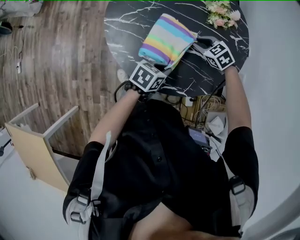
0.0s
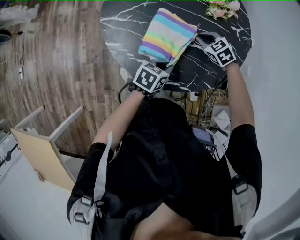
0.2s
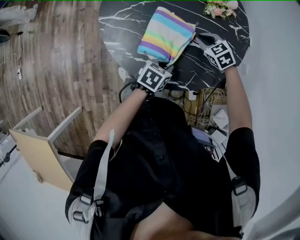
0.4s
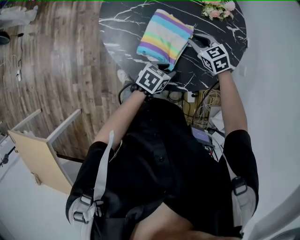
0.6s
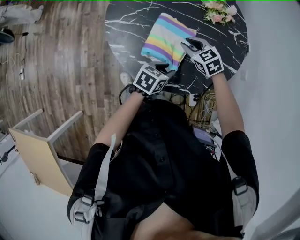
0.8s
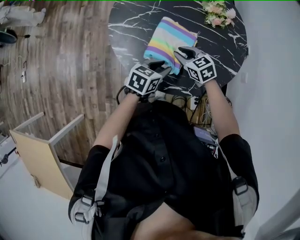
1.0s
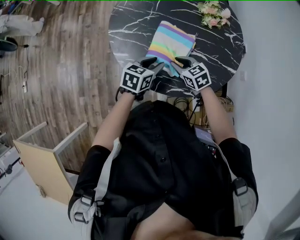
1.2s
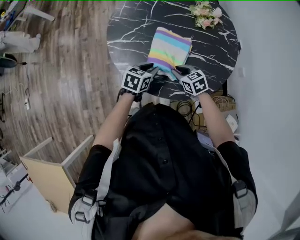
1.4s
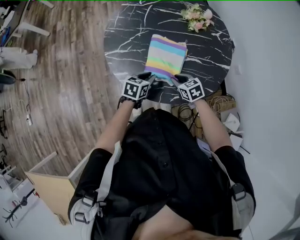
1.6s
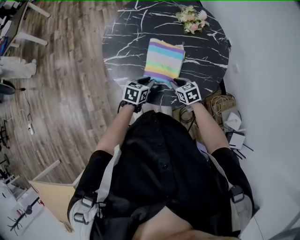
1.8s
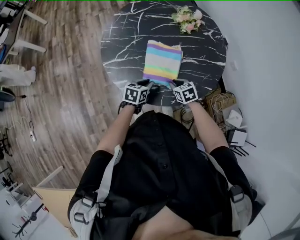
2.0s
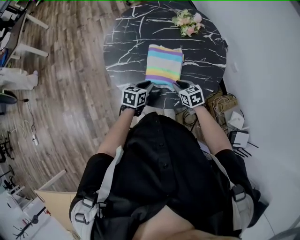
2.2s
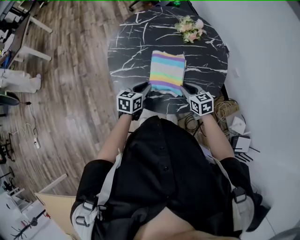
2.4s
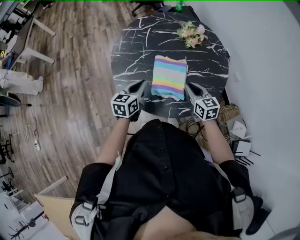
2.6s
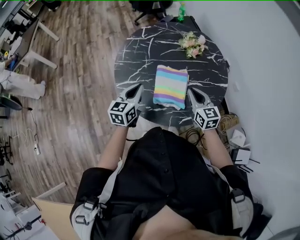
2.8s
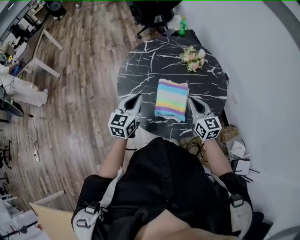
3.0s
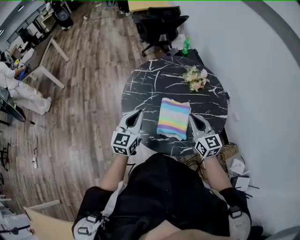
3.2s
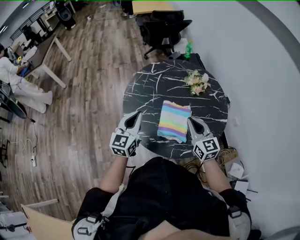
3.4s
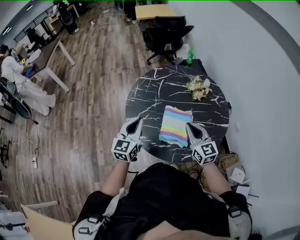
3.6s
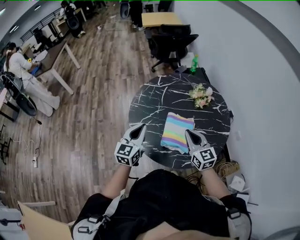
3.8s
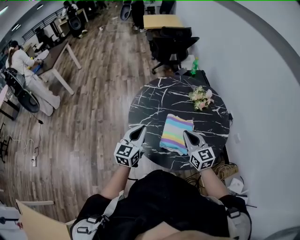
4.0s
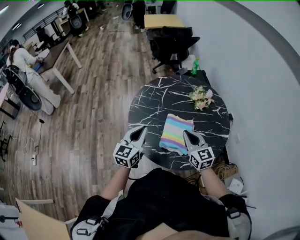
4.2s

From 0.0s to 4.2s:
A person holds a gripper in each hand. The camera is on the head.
From 0.0s to 1.4s: The right gripper moves approximately 15 cm, and swivels about 30 degrees. The left gripper shifts by about 10 cm.
From 1.4s to 2.8s: The left gripper goes approximately 15 cm upward and to the left, changes its angle by approximately 30 degrees, and closes its fingers, while the right gripper heads upward, covering some 15 cm, and rotates about 40 degrees.
From 2.8s to 4.2s: The right gripper goes roughly 10 cm upward and to the left. Meanwhile the left gripper is displaced upward by about 10 cm.

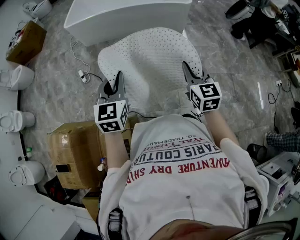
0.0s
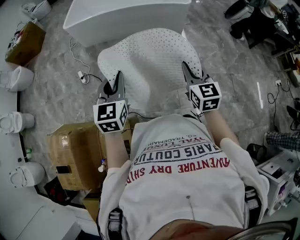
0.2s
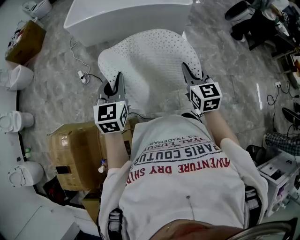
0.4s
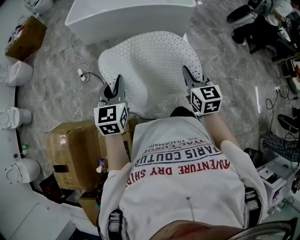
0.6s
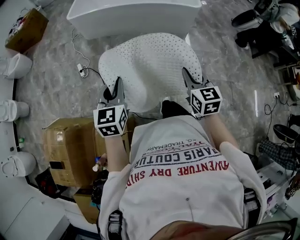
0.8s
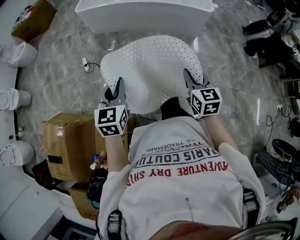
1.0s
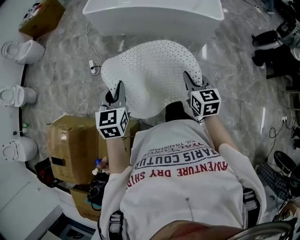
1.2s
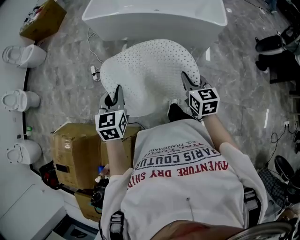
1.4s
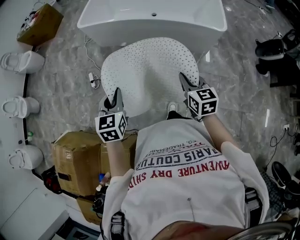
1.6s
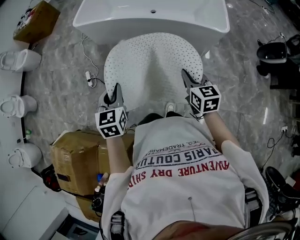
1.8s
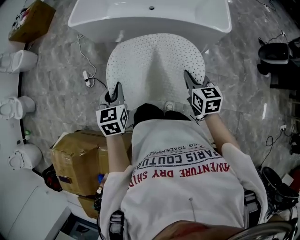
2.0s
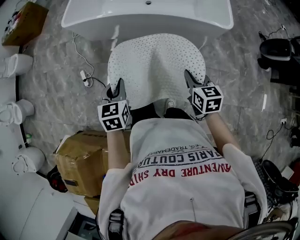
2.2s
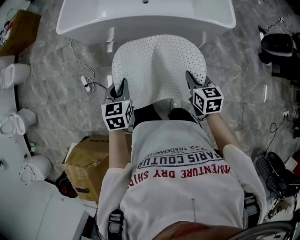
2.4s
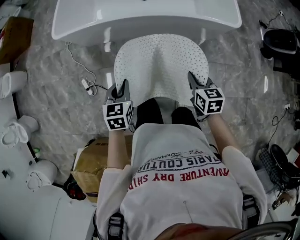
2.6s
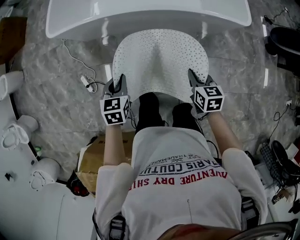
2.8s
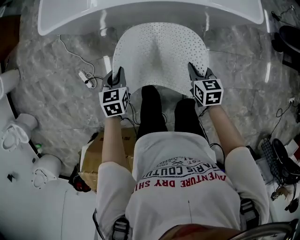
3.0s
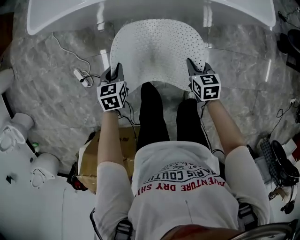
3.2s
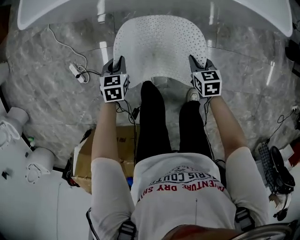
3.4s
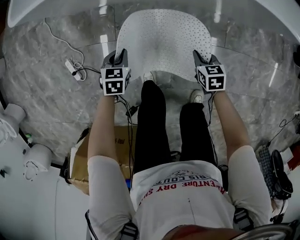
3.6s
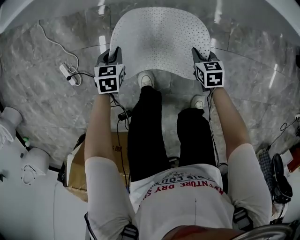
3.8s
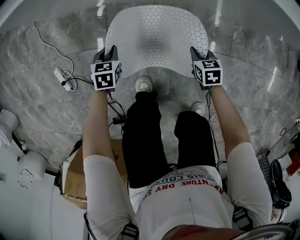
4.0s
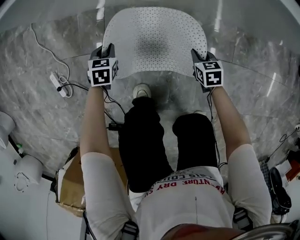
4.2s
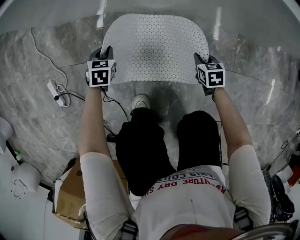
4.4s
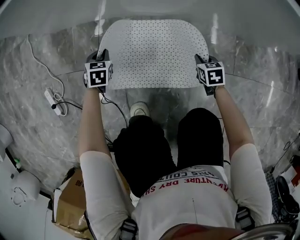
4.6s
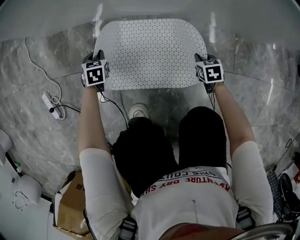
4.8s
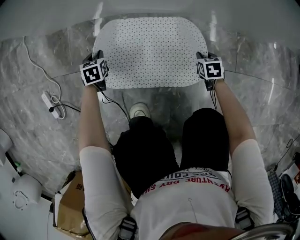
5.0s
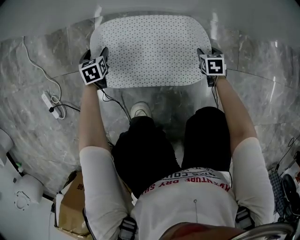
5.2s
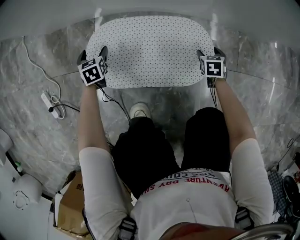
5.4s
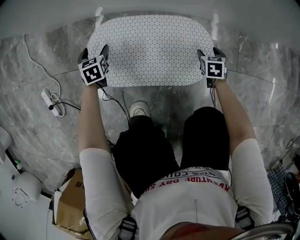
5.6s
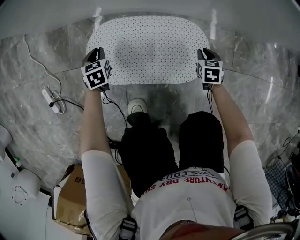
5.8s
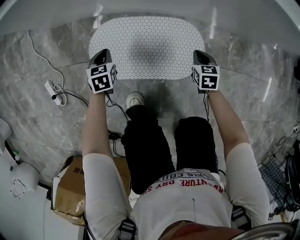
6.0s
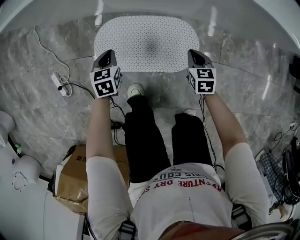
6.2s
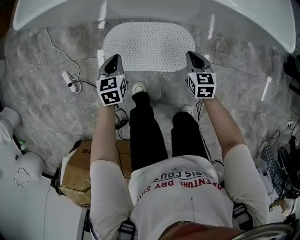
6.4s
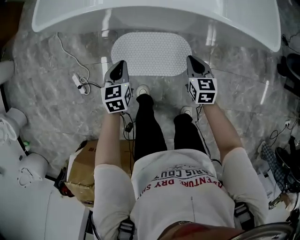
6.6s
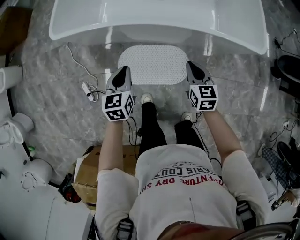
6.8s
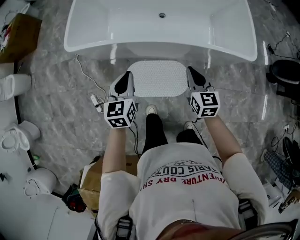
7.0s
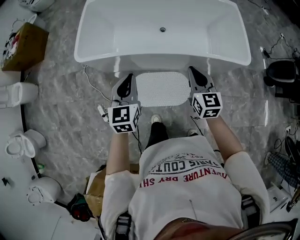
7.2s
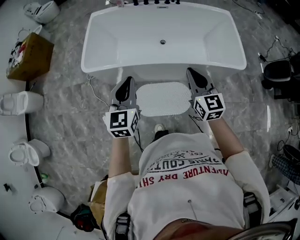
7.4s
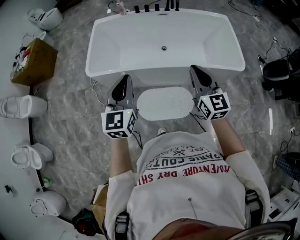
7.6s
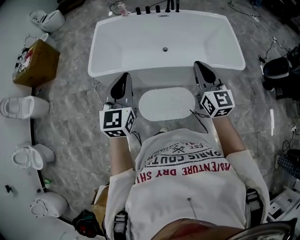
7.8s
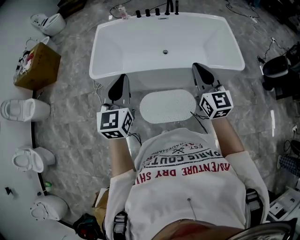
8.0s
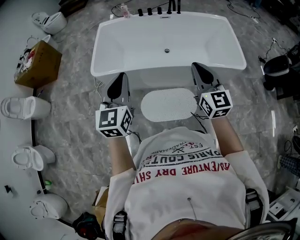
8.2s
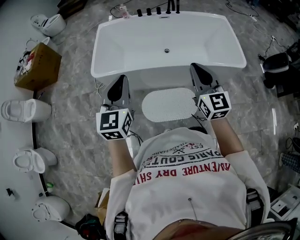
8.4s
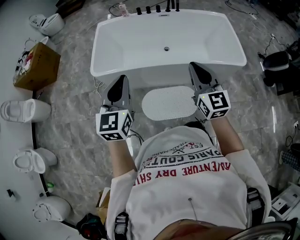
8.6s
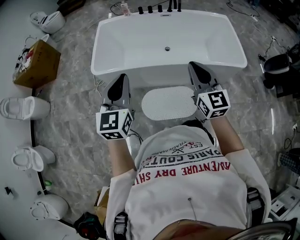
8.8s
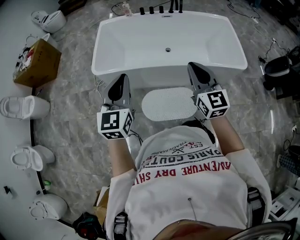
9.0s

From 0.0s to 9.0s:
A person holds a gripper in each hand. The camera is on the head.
From 0.0s to 1.6s: The two grippers go roughly 30 cm forward. The right gripper swivels roughly 20 degrees. Meanwhile the left gripper swivels some 20 degrees.
From 1.6s to 3.0s: The grippers both shift forward and downward by about 40 cm. The left gripper swivels approximately 30 degrees. Meanwhile the right gripper turns by about 30 degrees.
From 3.0s to 4.4s: Both grippers travel together downward, some 50 cm.
From 4.4s to 6.0s: The left gripper reaches roughly 10 cm downward, then returns, and opens, then closes once more, while the right gripper reaches some 10 cm downward, then returns, and opens, then closes once more.
From 6.0s to 7.6s: Both grippers travel together upward, approximately 90 cm. The right gripper tips its fingers upward by approximately 50 degrees, while the left gripper tips its fingers upward by about 50 degrees.
From 7.6s to 9.0s: Both grippers travel together to the left, some 5 cm.

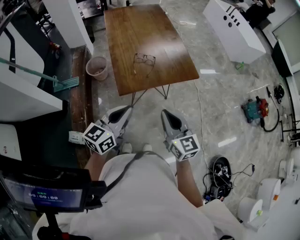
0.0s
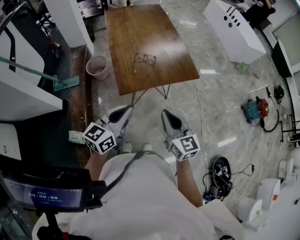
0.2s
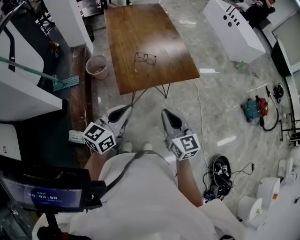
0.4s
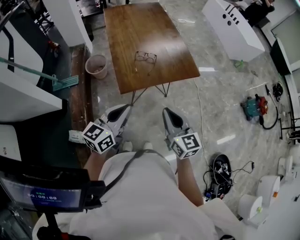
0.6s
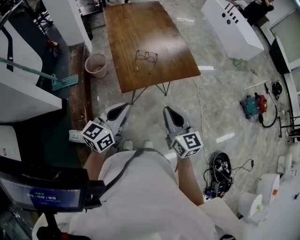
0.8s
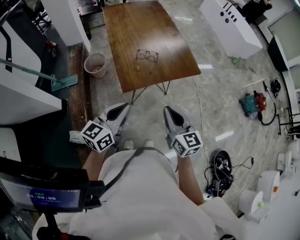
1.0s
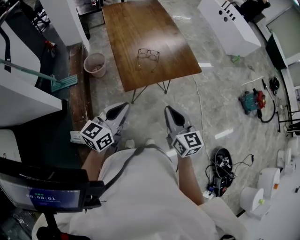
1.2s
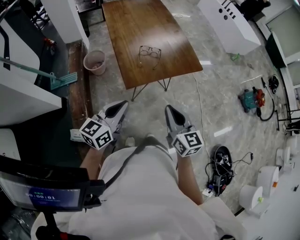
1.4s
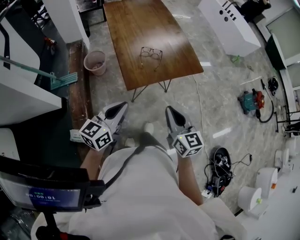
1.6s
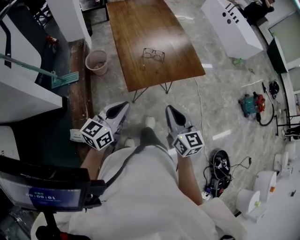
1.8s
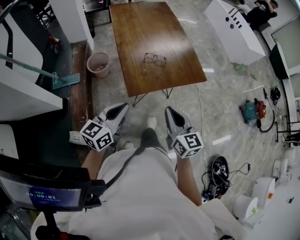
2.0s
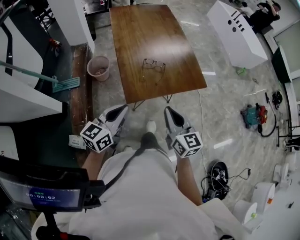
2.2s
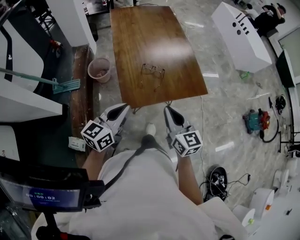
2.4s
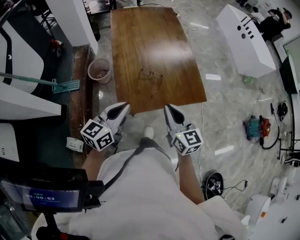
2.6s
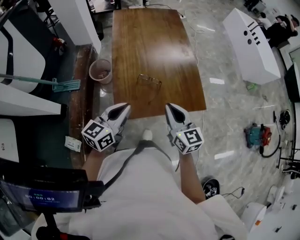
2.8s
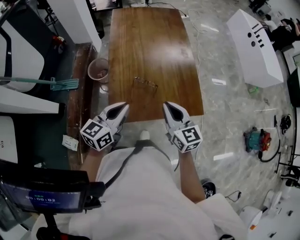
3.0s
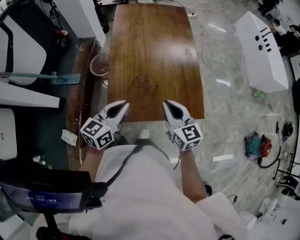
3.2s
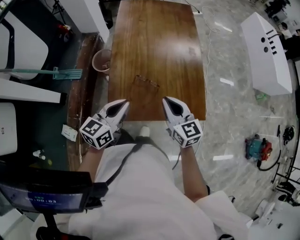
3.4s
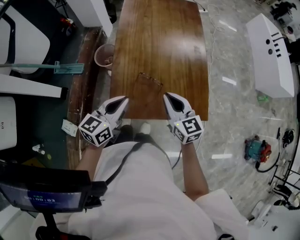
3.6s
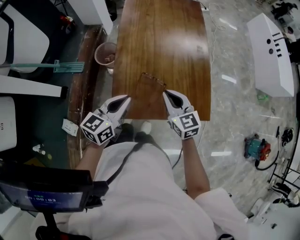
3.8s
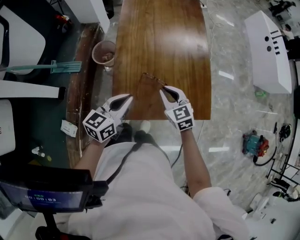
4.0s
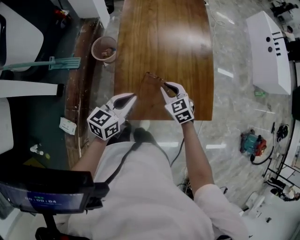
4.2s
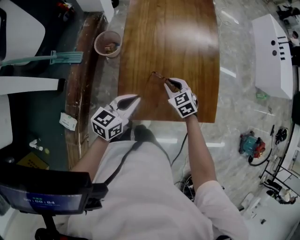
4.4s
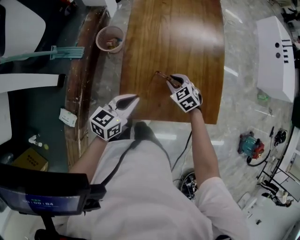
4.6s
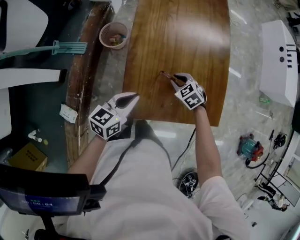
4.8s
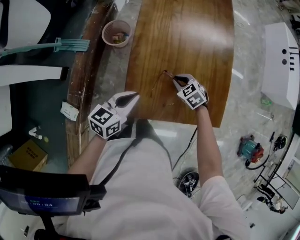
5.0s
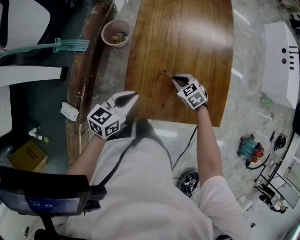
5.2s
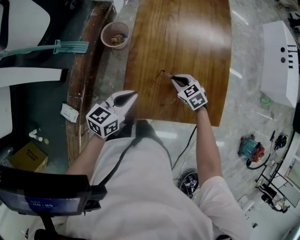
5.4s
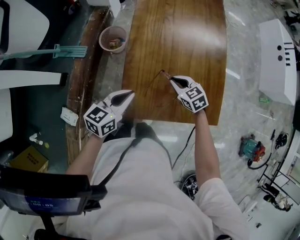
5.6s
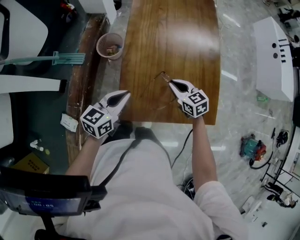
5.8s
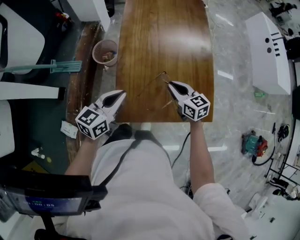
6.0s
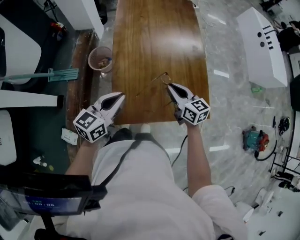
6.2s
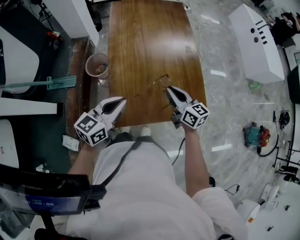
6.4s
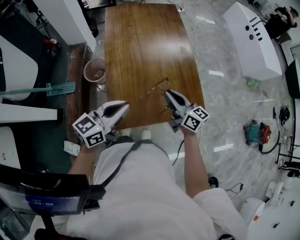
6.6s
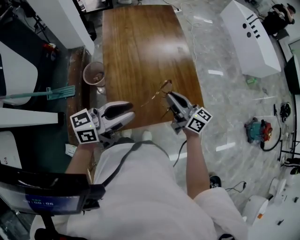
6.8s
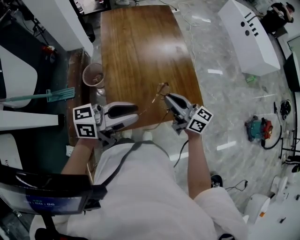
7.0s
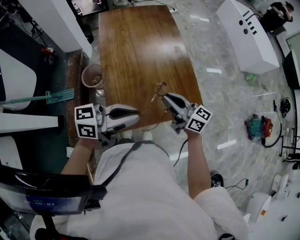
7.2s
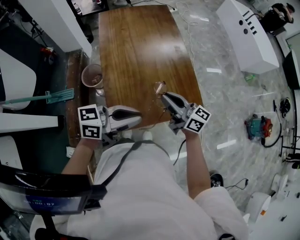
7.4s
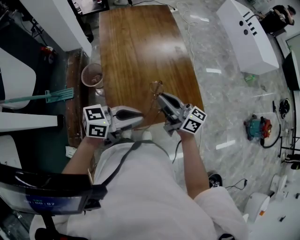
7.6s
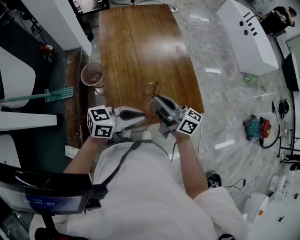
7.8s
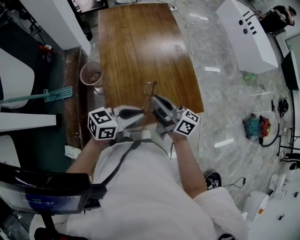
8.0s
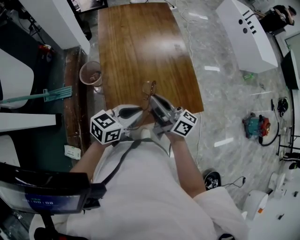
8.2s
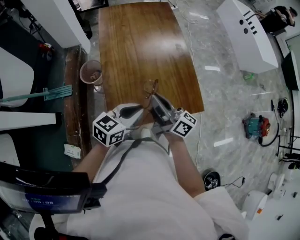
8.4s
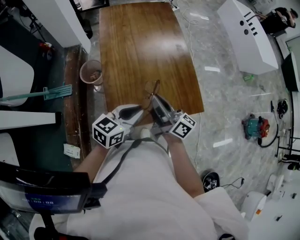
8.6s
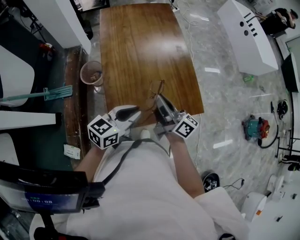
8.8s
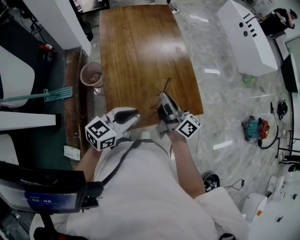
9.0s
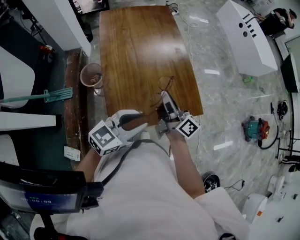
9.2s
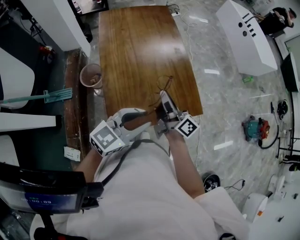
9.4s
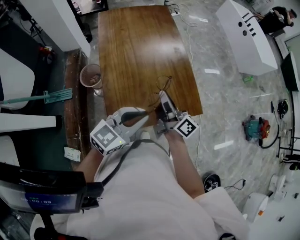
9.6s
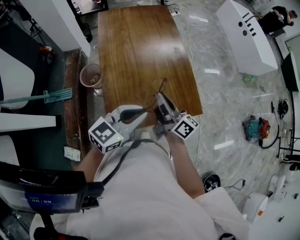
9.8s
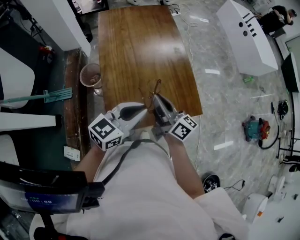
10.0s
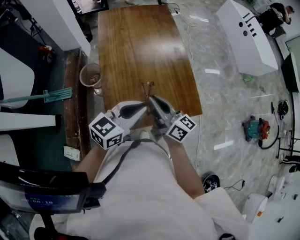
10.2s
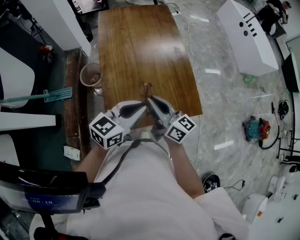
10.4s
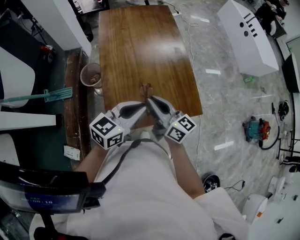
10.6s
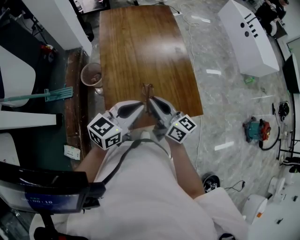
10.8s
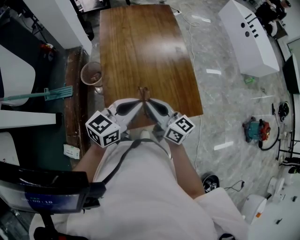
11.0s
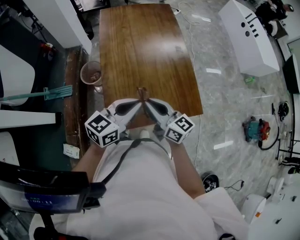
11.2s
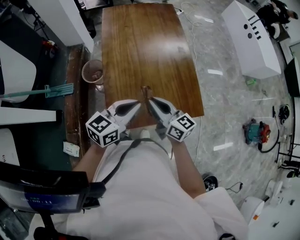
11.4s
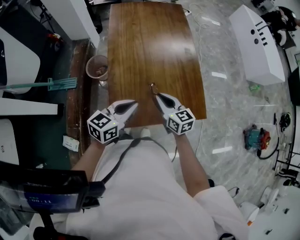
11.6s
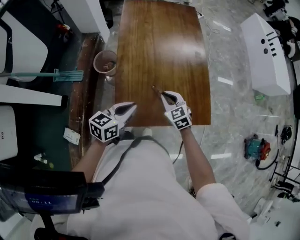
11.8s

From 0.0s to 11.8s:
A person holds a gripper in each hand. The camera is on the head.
From 0.0s to 1.4s: The left gripper travels to the left by approximately 10 cm; the right gripper heads to the left, covering approximately 5 cm.
From 1.4s to 3.0s: The grippers both shift forward by about 30 cm.
From 3.0s to 4.4s: The right gripper shifts approximately 25 cm downward and forward, and tilts its fingers roughly 40 degrees downward. The left gripper is displaced downward and forward by about 15 cm.
From 4.4s to 6.0s: The left gripper changes place by approximately 5 cm; the right gripper goes some 5 cm upward, and rotates roughly 30 degrees.
From 6.0s to 7.4s: The left gripper changes place by roughly 15 cm, changes its angle by approximately 50 degrees, and opens and closes again. Meanwhile the right gripper heads upward, covering roughly 15 cm, and tips its fingers upward by approximately 30 degrees.
From 7.4s to 8.8s: The left gripper moves downward, approximately 5 cm, and rotates some 30 degrees. Meanwhile the right gripper swivels about 20 degrees.
From 8.8s to 10.4s: The left gripper ends up roughly 5 cm from where it was.
From 10.4s to 11.8s: The right gripper heads downward, covering roughly 15 cm, and tips its fingers downward by about 40 degrees. The left gripper heads downward and to the left, covering about 10 cm, and rotates roughly 20 degrees.
